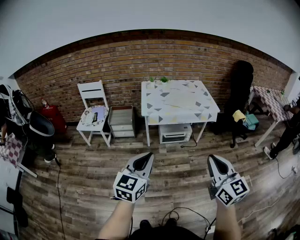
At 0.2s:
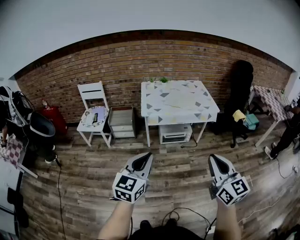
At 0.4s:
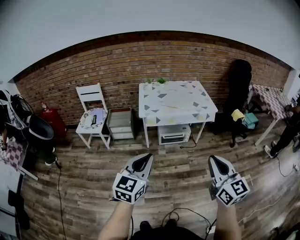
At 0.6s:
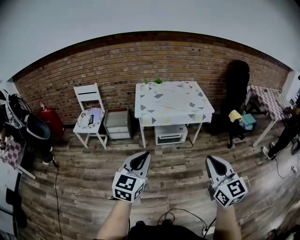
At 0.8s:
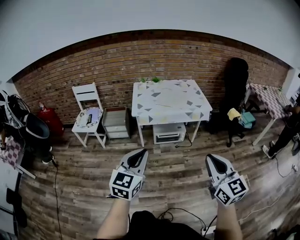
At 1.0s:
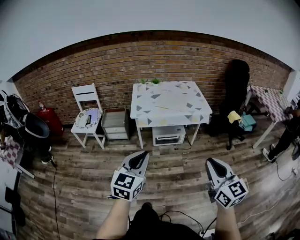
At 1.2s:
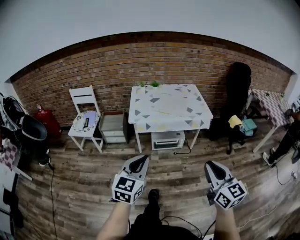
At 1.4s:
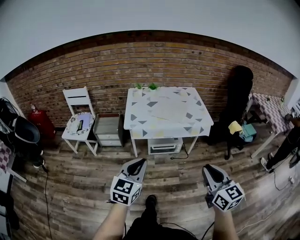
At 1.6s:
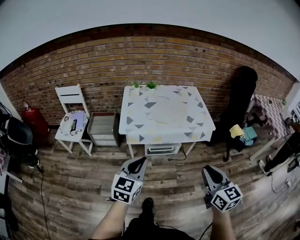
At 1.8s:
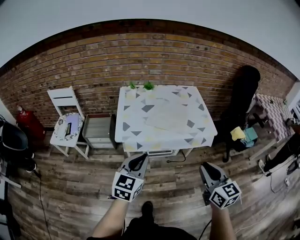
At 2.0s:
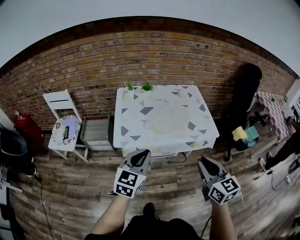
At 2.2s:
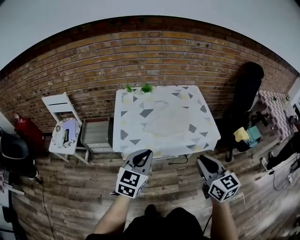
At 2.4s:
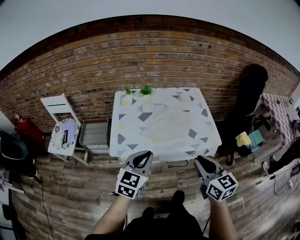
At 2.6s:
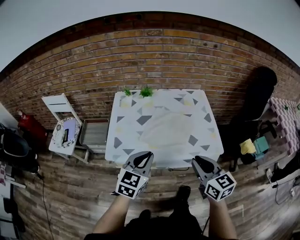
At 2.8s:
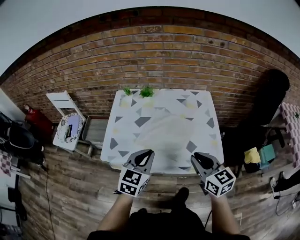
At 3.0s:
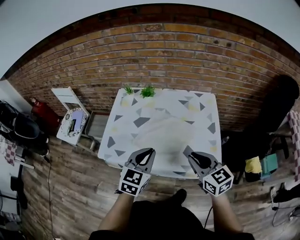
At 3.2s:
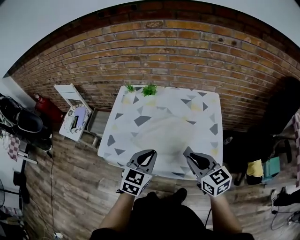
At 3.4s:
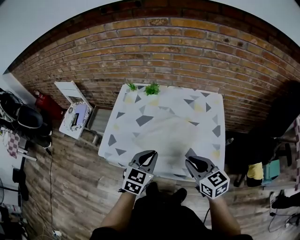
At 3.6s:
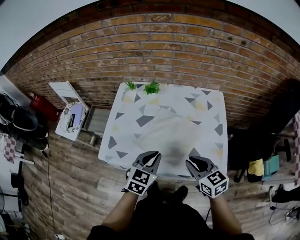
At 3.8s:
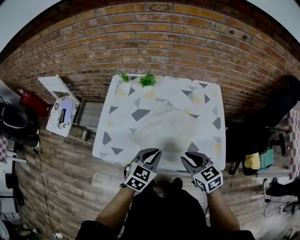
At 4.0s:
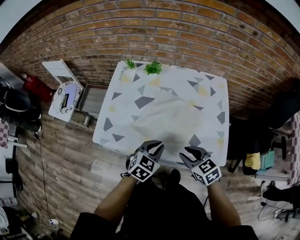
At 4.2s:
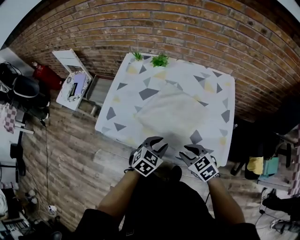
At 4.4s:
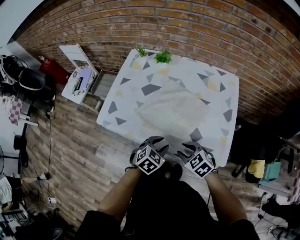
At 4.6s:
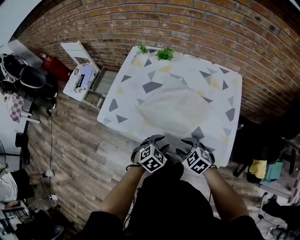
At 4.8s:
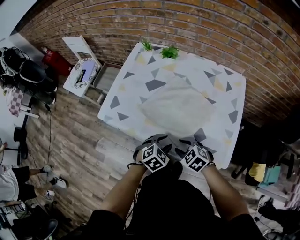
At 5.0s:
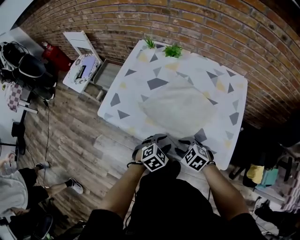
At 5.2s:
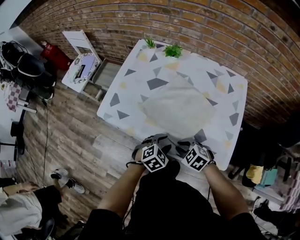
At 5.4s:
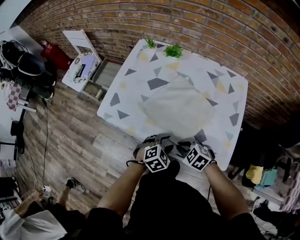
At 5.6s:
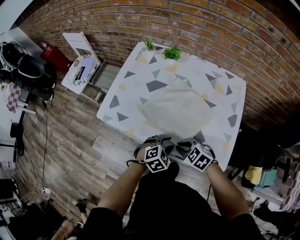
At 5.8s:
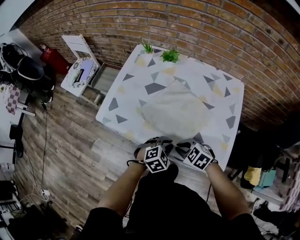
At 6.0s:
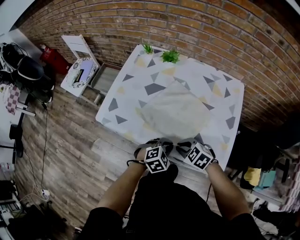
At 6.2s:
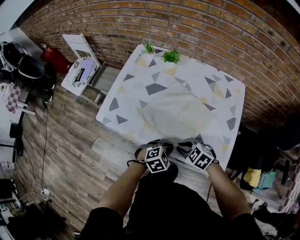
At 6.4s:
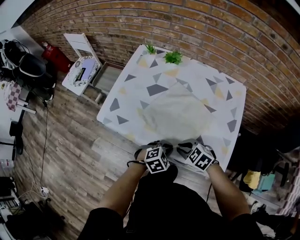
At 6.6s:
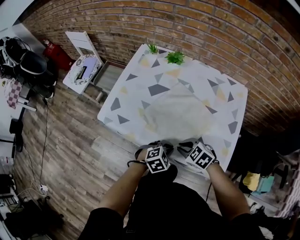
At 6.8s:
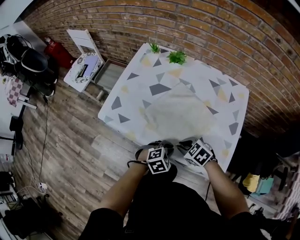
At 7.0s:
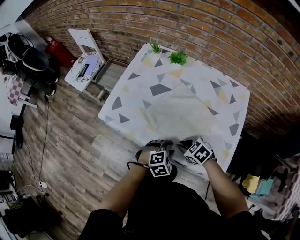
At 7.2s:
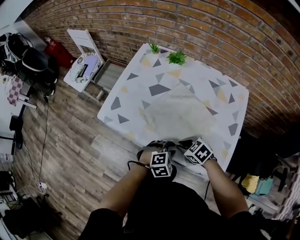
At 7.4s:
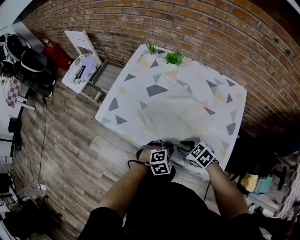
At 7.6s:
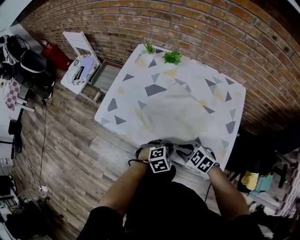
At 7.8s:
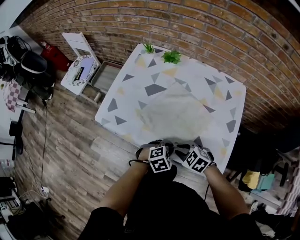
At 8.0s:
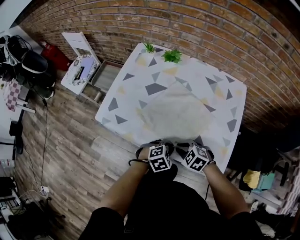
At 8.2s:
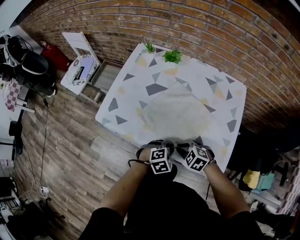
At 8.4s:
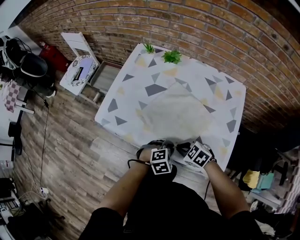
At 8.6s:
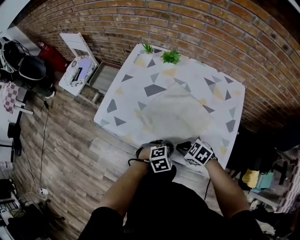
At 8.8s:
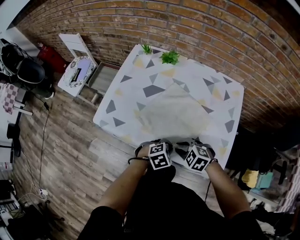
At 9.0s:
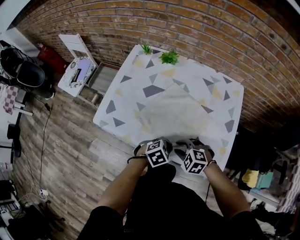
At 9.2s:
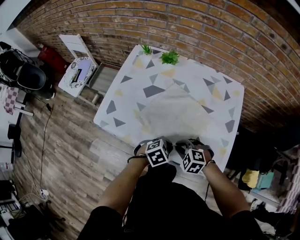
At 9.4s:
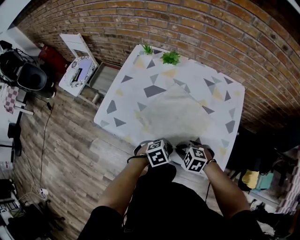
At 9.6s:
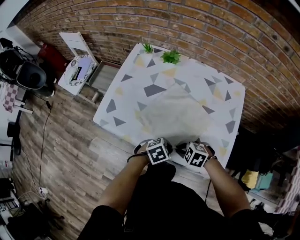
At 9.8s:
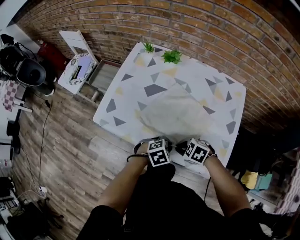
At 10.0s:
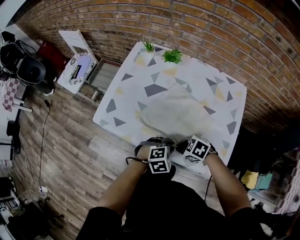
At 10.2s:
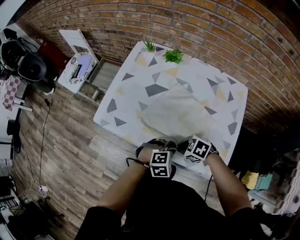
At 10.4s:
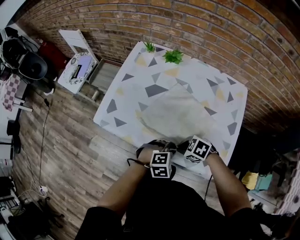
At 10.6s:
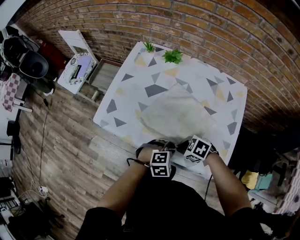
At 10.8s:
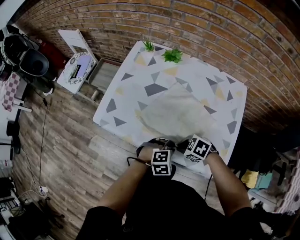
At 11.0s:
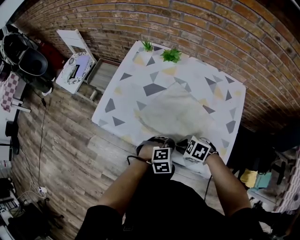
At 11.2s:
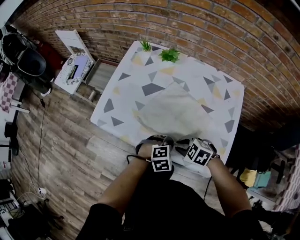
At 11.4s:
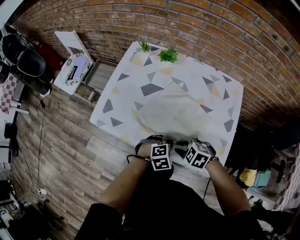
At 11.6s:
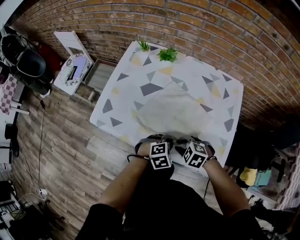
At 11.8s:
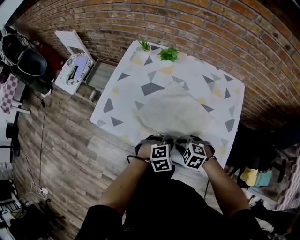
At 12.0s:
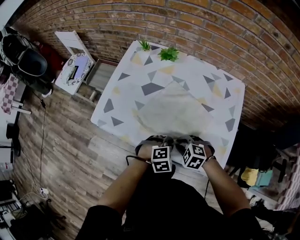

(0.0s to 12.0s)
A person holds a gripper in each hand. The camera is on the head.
0.0s - 1.6s: The right gripper heads forward and to the right, covering approximately 25 cm; the left gripper heads forward, covering some 25 cm.
1.6s - 3.0s: The two grippers travel together, forward, about 40 cm. The right gripper rotates some 30 degrees.
3.0s - 4.4s: The two grippers go roughly 20 cm downward. The right gripper swivels about 40 degrees, and opens its fingers. Meanwhile the left gripper changes its angle by some 30 degrees, and opens.
4.4s - 6.0s: The left gripper closes its fingers. The right gripper closes.
6.0s - 7.6s: The grippers stay close to where they were, moving slightly.
7.6s - 9.0s: The right gripper swivels approximately 20 degrees.
9.0s - 10.4s: The left gripper changes its angle by about 20 degrees. Meanwhile the right gripper rotates roughly 30 degrees, and closes.
10.4s - 12.0s: The right gripper changes its angle by approximately 30 degrees.

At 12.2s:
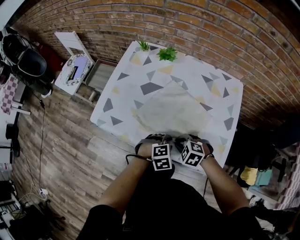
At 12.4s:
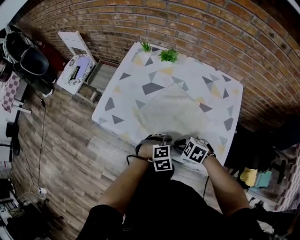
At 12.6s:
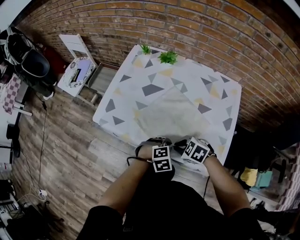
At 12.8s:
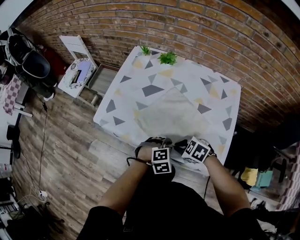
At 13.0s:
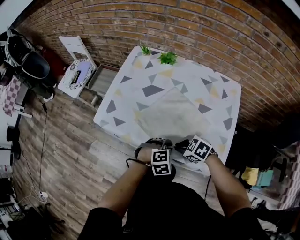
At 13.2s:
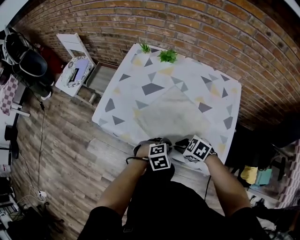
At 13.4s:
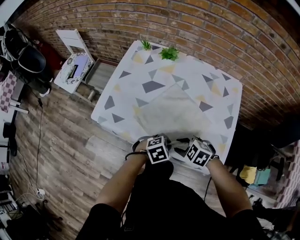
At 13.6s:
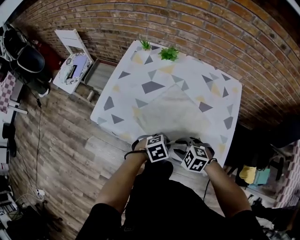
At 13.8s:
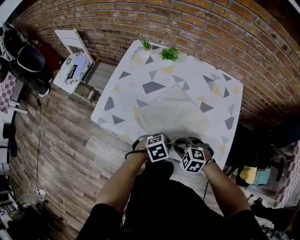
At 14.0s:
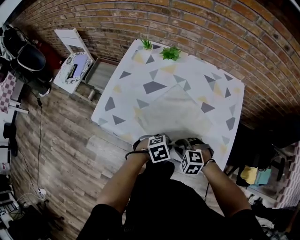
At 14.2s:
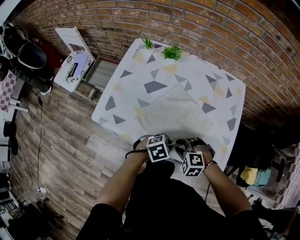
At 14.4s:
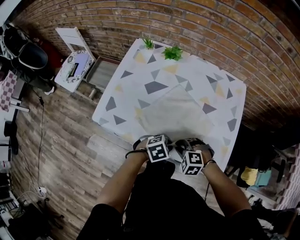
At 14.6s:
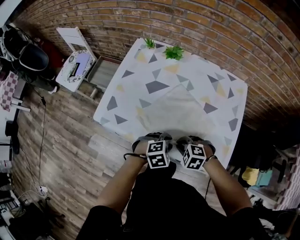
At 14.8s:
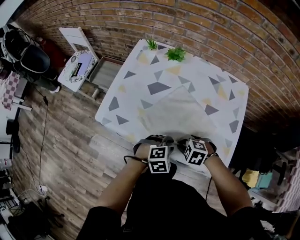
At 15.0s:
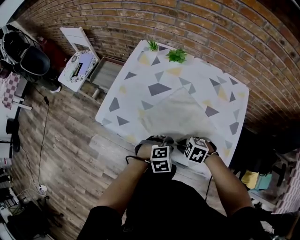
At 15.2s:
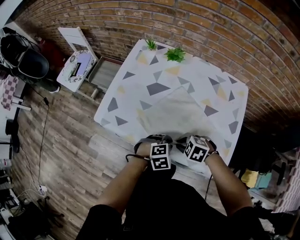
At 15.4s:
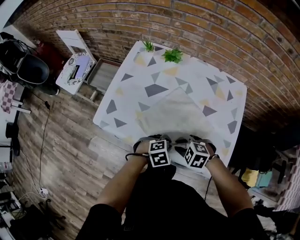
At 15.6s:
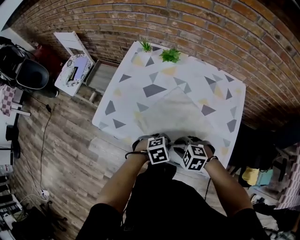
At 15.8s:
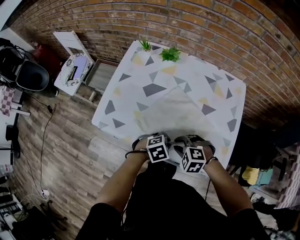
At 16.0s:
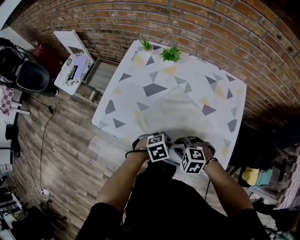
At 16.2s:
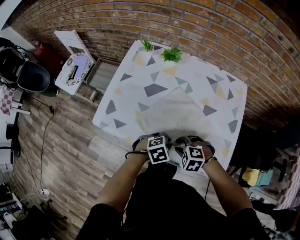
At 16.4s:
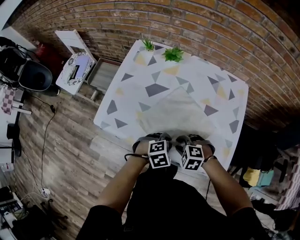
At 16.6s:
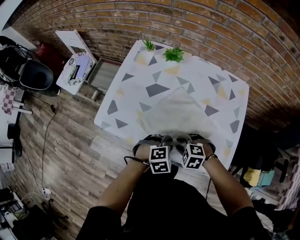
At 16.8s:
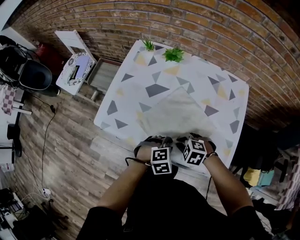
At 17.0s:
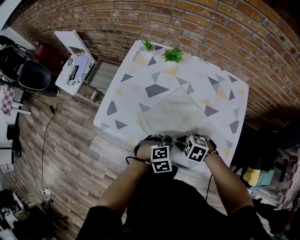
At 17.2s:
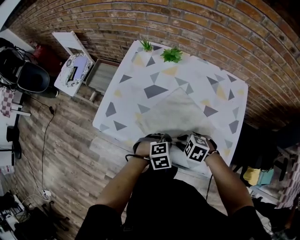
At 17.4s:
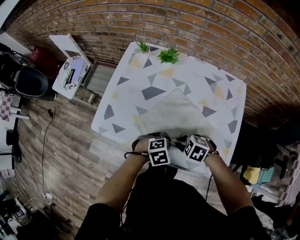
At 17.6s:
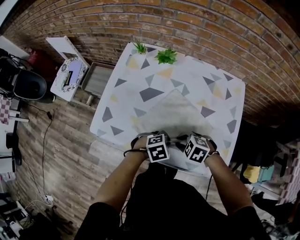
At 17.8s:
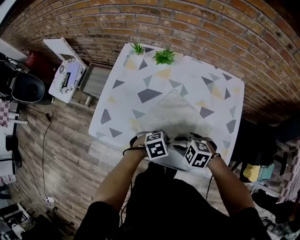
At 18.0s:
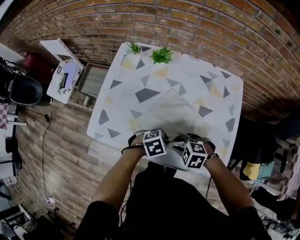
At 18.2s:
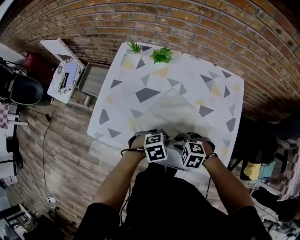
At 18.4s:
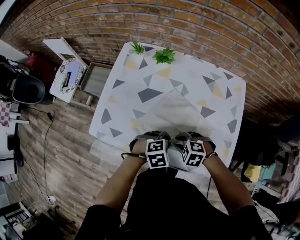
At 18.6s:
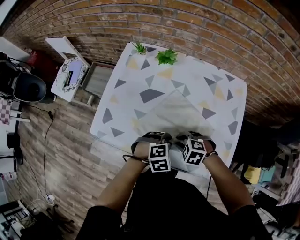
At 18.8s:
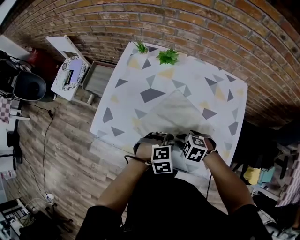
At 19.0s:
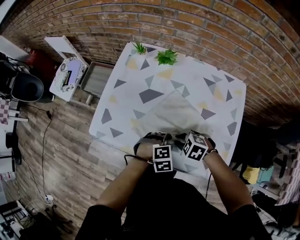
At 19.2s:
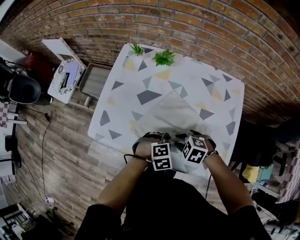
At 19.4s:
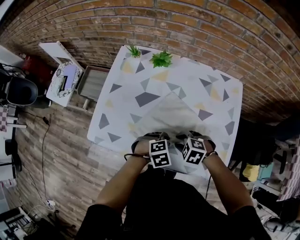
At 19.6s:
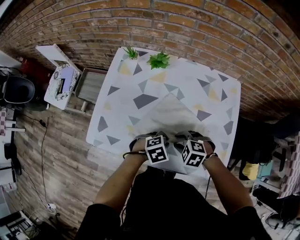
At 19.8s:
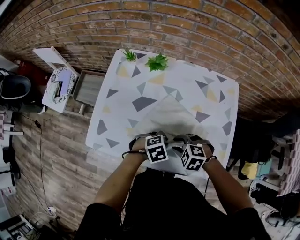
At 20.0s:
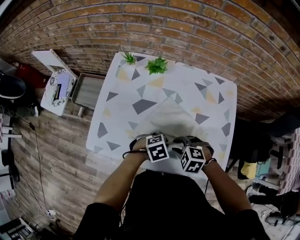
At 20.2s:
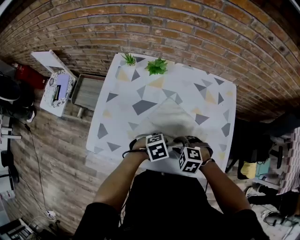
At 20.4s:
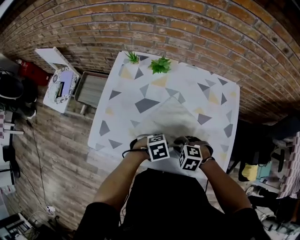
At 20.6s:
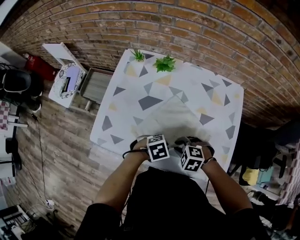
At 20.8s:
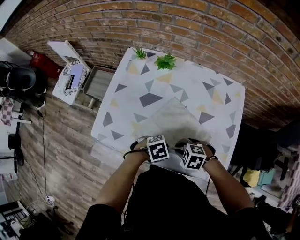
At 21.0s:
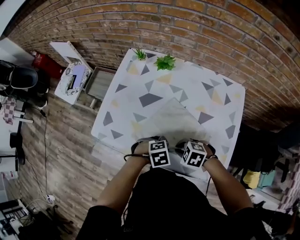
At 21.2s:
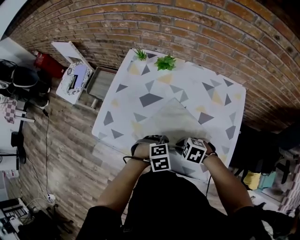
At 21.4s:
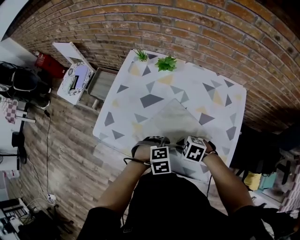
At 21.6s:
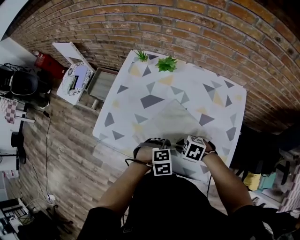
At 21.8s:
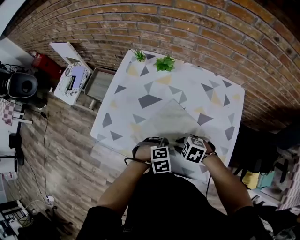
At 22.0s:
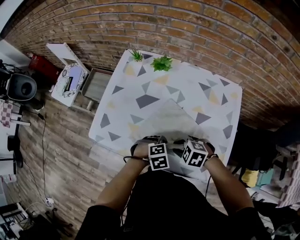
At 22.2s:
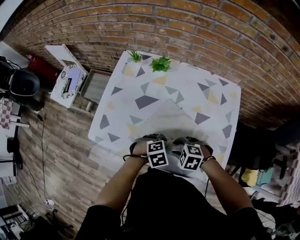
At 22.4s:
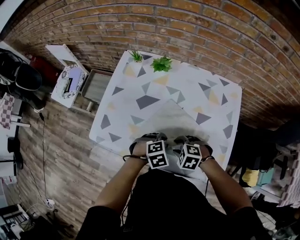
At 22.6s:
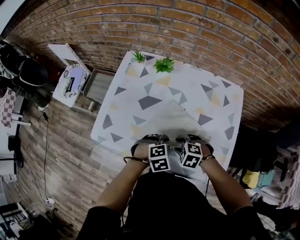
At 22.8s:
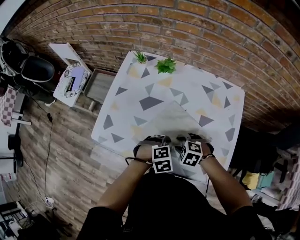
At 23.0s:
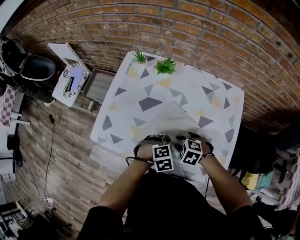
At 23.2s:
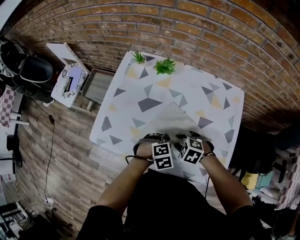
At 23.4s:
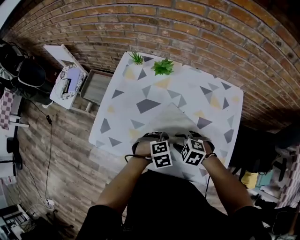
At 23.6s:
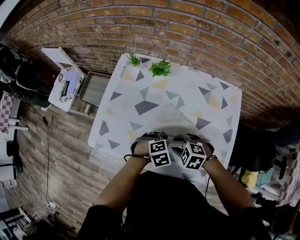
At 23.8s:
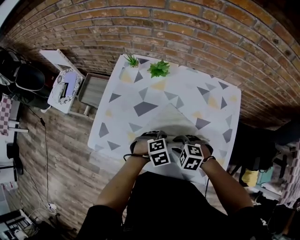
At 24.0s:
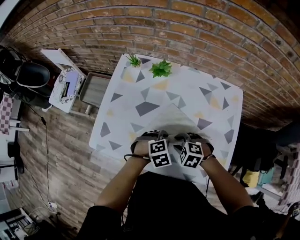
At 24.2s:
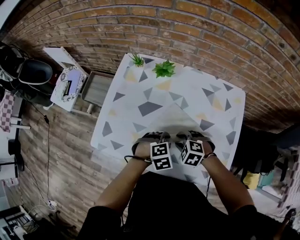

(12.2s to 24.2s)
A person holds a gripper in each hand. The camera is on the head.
13.8s - 15.2s: There are only small adjustments of the grippers.
15.2s - 16.6s: The right gripper opens up.
18.2s - 19.8s: There are only small adjustments of the grippers.
19.8s - 21.2s: The right gripper closes up.
21.2s - 22.6s: The right gripper opens its fingers.
22.6s - 24.2s: The right gripper changes place by about 5 cm.
